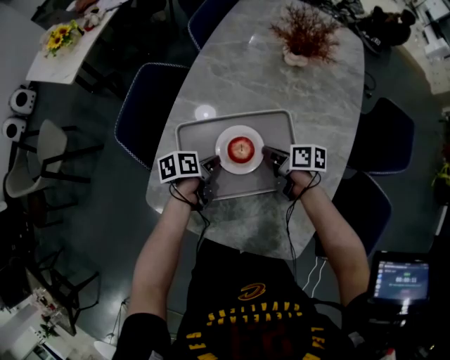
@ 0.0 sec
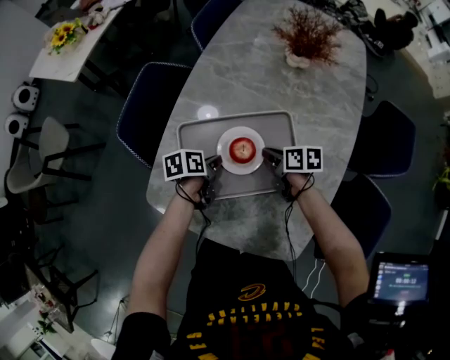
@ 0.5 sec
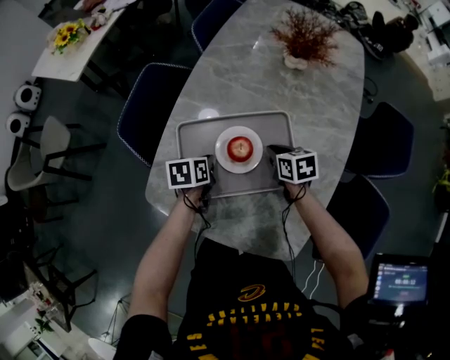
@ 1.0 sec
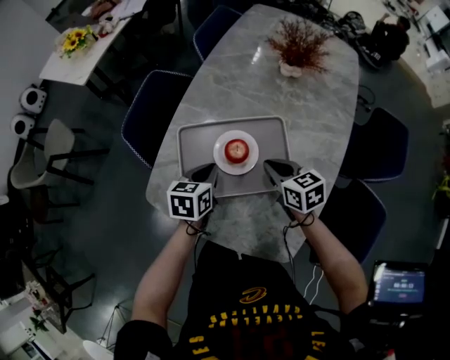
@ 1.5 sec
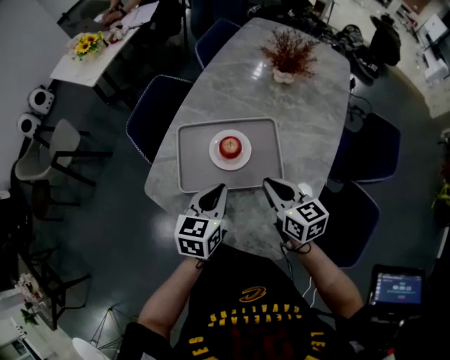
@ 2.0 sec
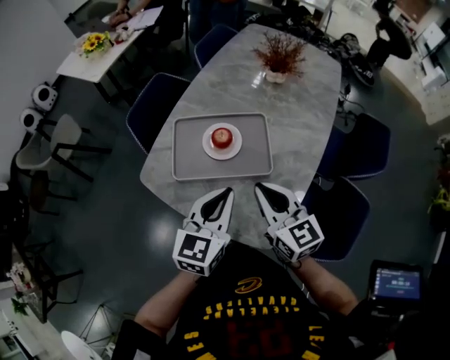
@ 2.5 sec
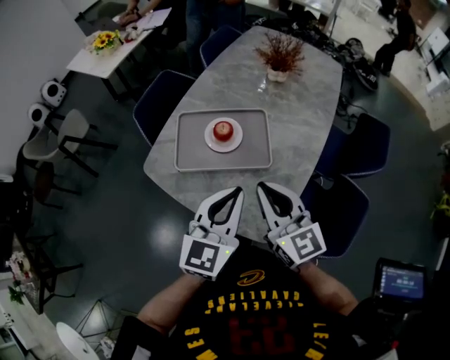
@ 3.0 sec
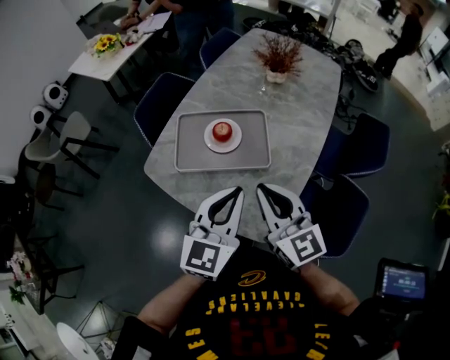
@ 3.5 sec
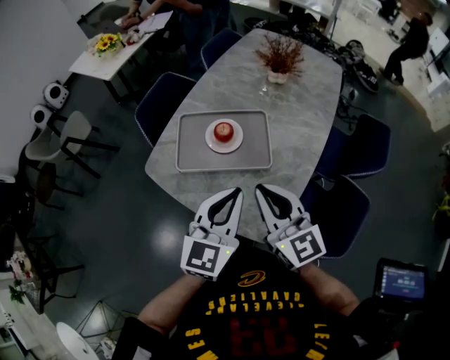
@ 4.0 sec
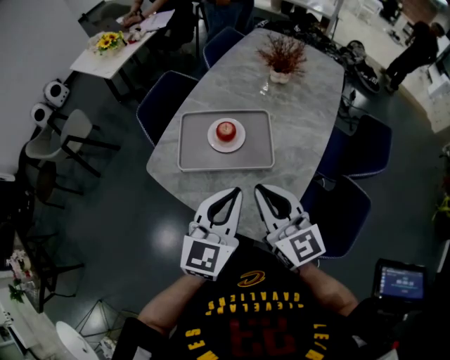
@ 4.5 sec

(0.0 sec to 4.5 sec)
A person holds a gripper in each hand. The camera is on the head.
0.0 sec - 2.0 sec: Both grippers move upward and backward, approximately 20 cm. The right gripper twists about 40 degrees counterclockwise, seen from behind. The left gripper twists about 40 degrees clockwise, seen from behind.
2.0 sec - 4.5 sec: The grippers both shift upward and backward by some 20 cm. The left gripper turns by roughly 20 degrees. The right gripper rotates approximately 30 degrees.

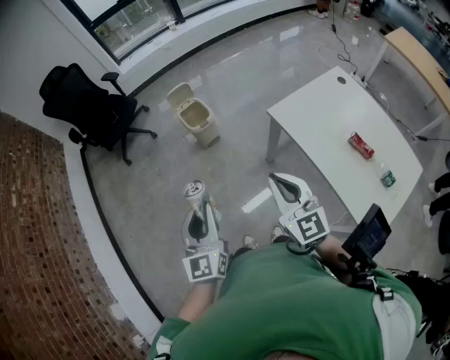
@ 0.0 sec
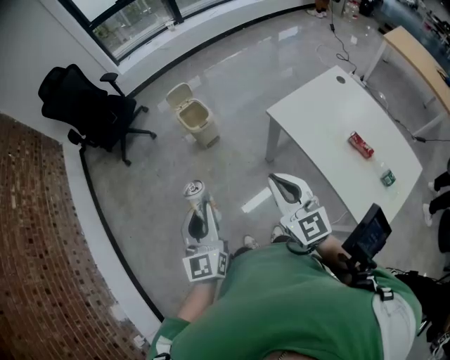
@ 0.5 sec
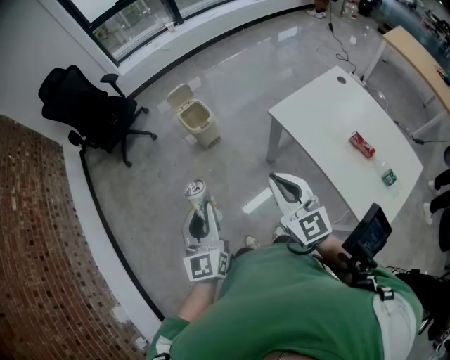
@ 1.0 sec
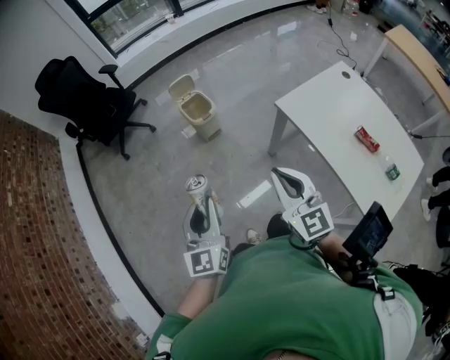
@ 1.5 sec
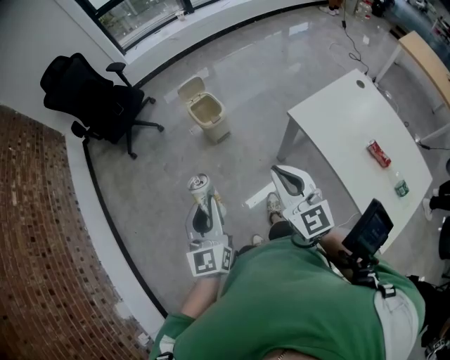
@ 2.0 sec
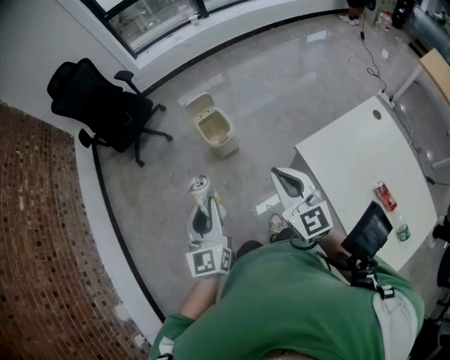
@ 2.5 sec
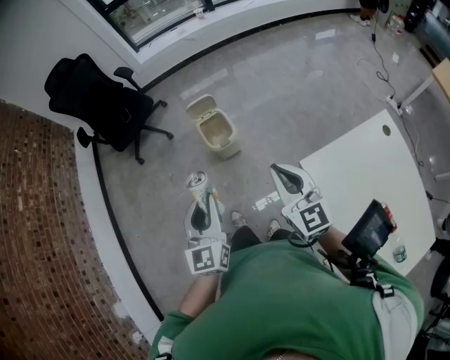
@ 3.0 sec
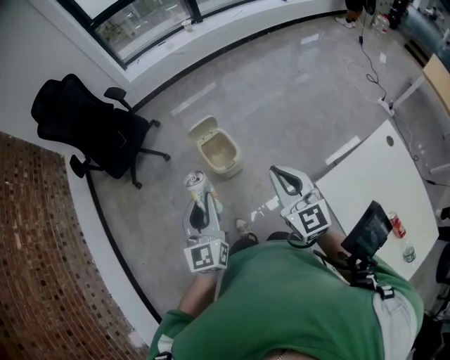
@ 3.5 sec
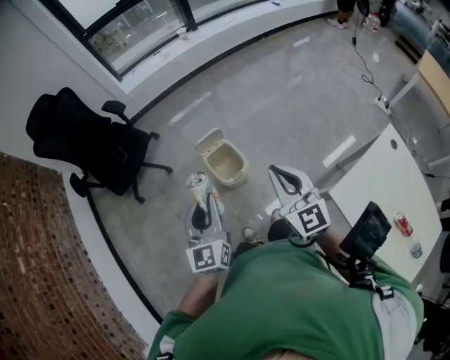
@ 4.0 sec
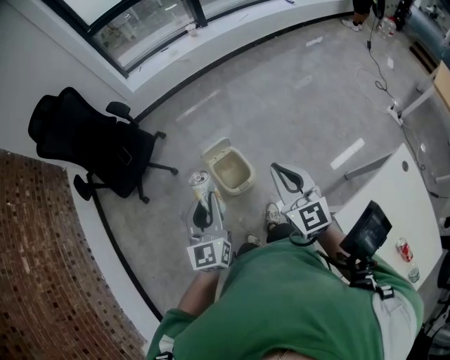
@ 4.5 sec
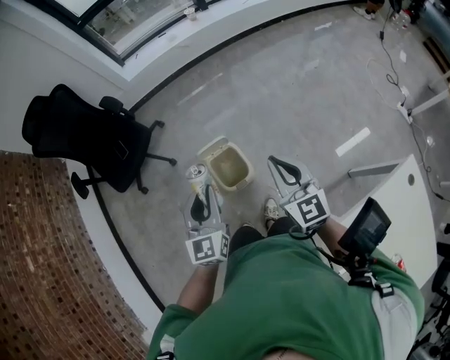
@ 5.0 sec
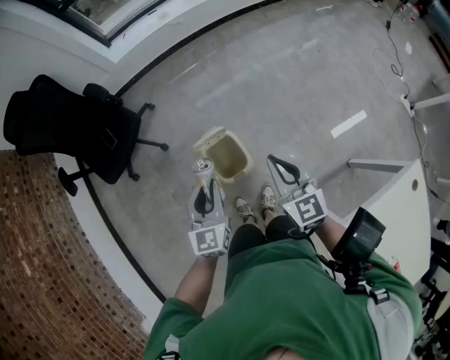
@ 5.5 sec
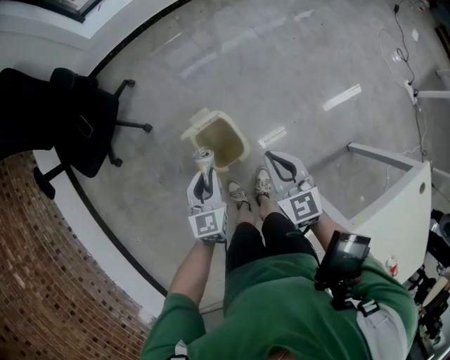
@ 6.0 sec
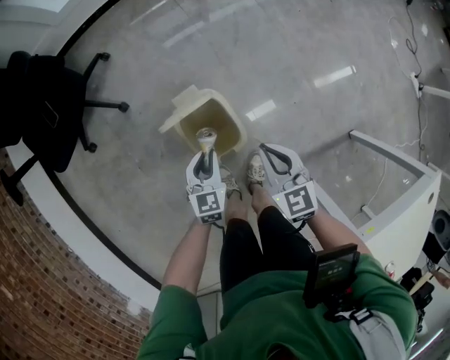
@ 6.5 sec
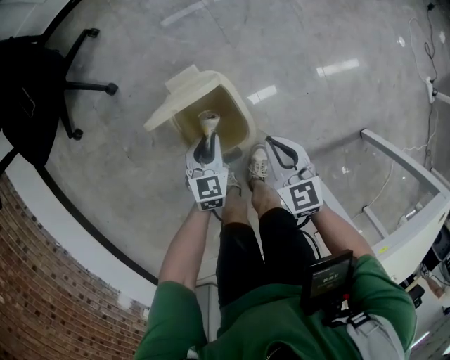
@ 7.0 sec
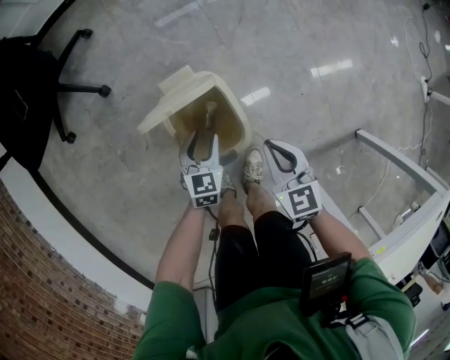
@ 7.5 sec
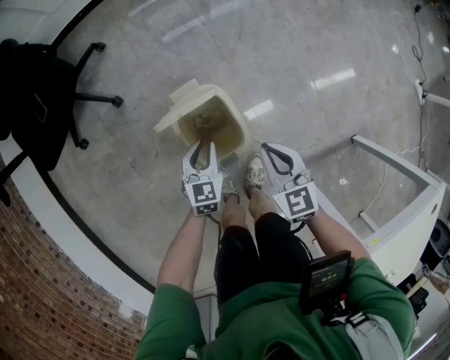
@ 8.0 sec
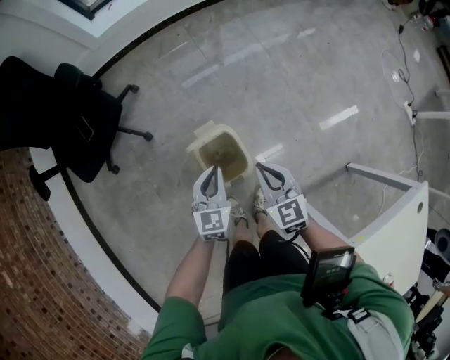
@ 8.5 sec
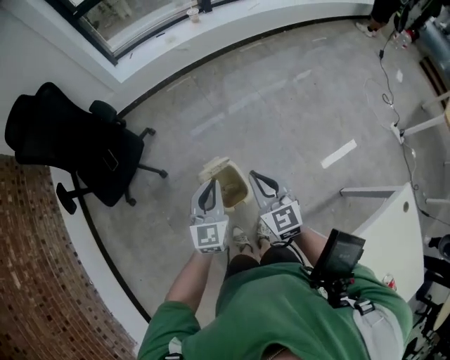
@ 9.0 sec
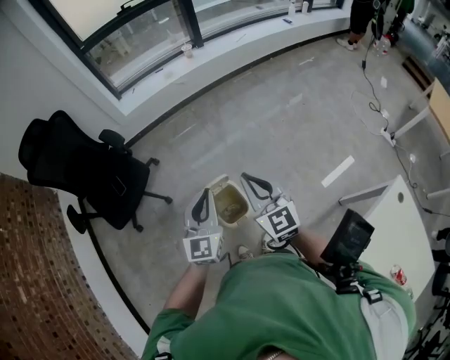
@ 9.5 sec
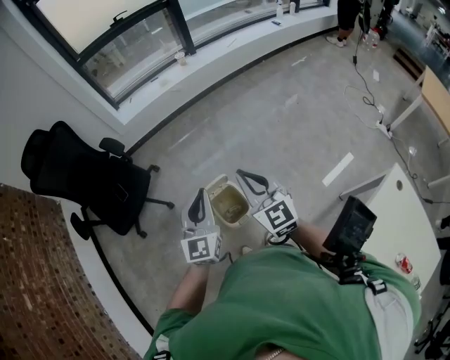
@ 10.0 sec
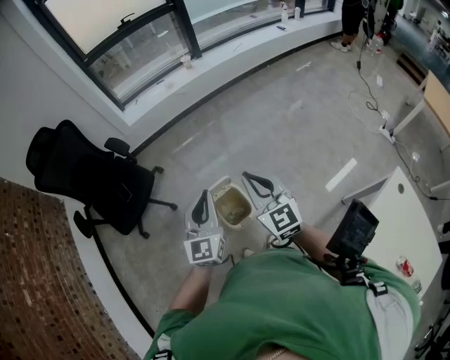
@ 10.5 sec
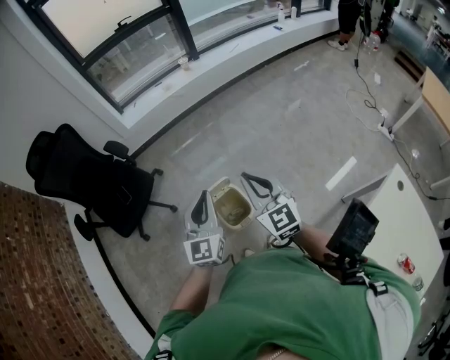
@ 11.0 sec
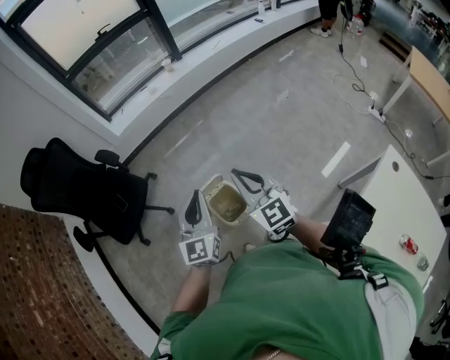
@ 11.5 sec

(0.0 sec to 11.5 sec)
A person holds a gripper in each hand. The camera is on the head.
0.0 sec - 2.0 sec: The two grippers go roughly 5 cm forward.
2.0 sec - 4.0 sec: The grippers both shift forward by about 35 cm.
4.0 sec - 6.0 sec: Both grippers travel together downward and forward, roughly 30 cm. The left gripper changes its angle by approximately 30 degrees, while the right gripper changes its angle by about 20 degrees.
6.0 sec - 7.5 sec: Both grippers move downward, some 25 cm. The left gripper opens up.
7.5 sec - 9.5 sec: Both grippers travel together upward, some 50 cm. The right gripper angles its fingers upward, by roughly 30 degrees; the left gripper tilts its fingers roughly 40 degrees upward, and closes its fingers.
9.5 sec - 11.5 sec: The grippers move only a little.

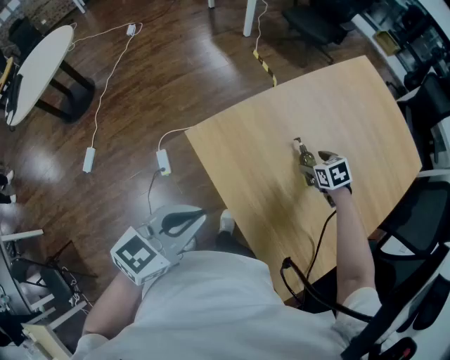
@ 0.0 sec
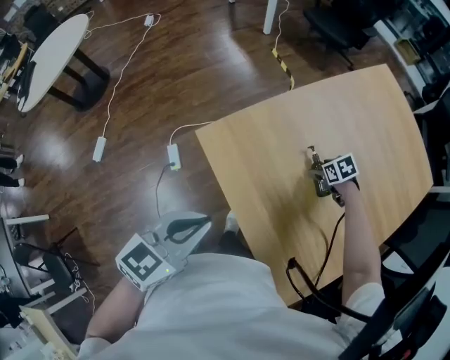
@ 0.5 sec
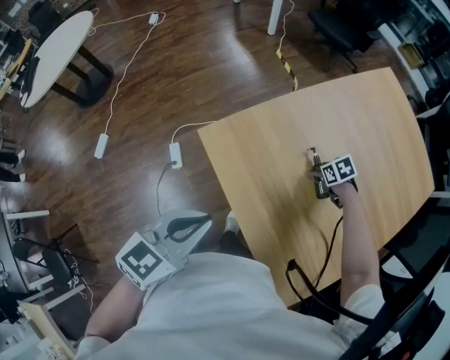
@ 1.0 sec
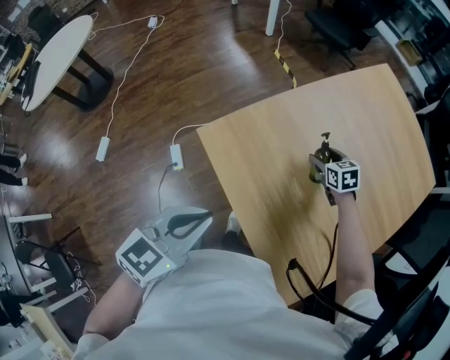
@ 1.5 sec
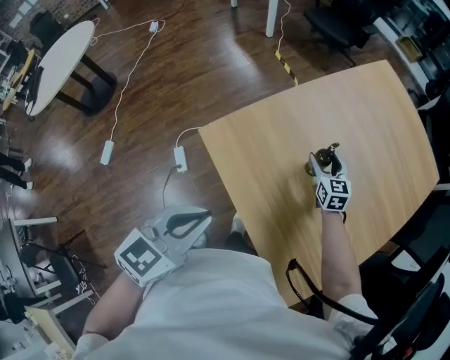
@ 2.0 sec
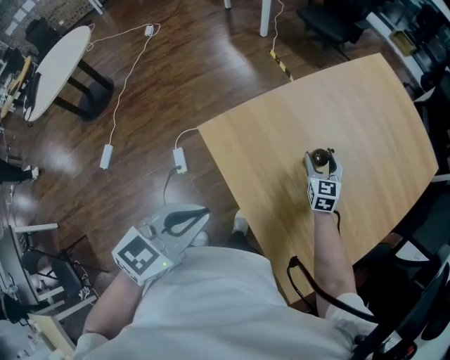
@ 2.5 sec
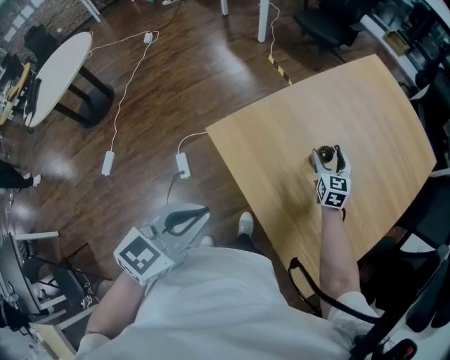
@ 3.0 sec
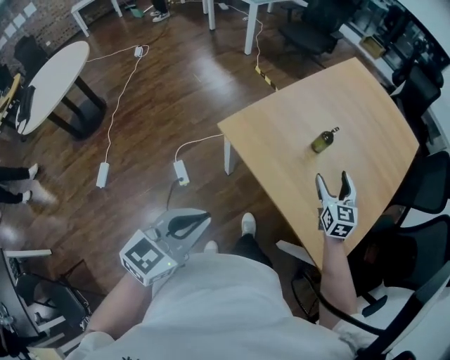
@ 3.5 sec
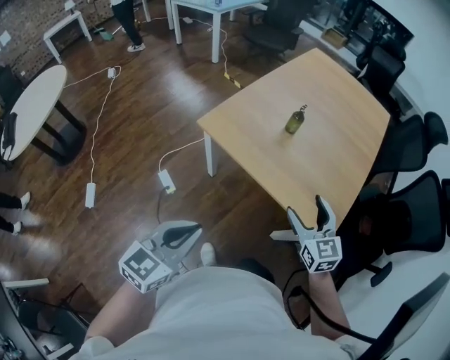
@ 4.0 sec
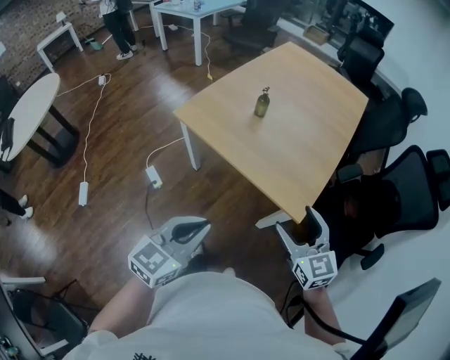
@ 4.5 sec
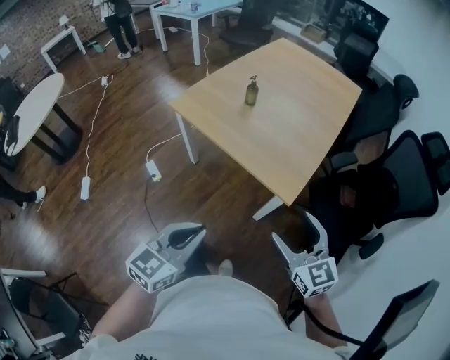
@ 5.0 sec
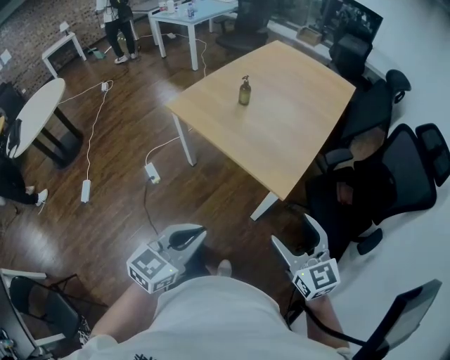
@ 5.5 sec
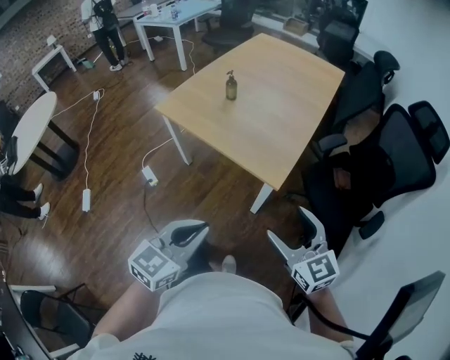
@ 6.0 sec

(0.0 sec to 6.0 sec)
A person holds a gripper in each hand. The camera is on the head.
0.0 sec - 2.0 sec: The right gripper goes downward and returns, approximately 5 cm each way, and points its fingers some 40 degrees further upward.
2.0 sec - 4.0 sec: The right gripper heads backward, covering about 35 cm. The left gripper moves backward, about 20 cm.
4.0 sec - 6.0 sec: The right gripper goes roughly 25 cm backward and to the right. Meanwhile the left gripper moves to the right and backward, roughly 25 cm.

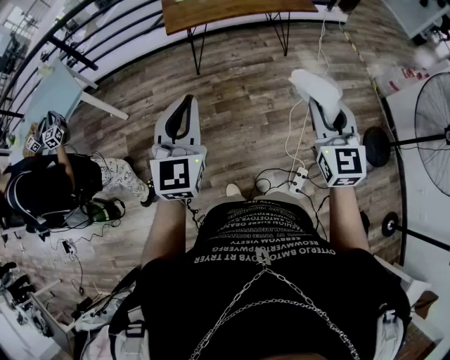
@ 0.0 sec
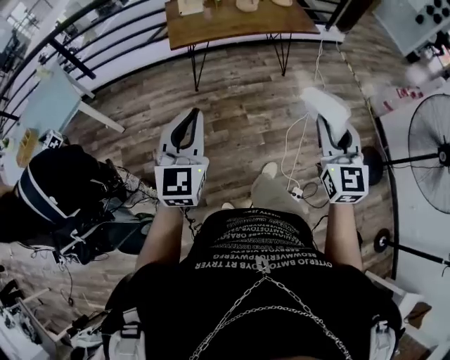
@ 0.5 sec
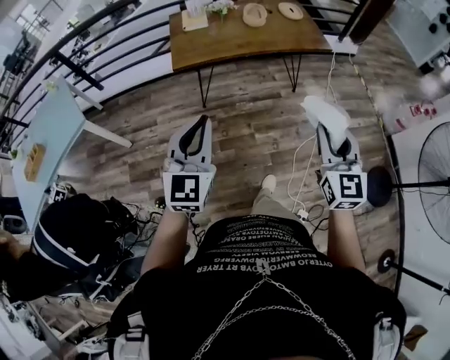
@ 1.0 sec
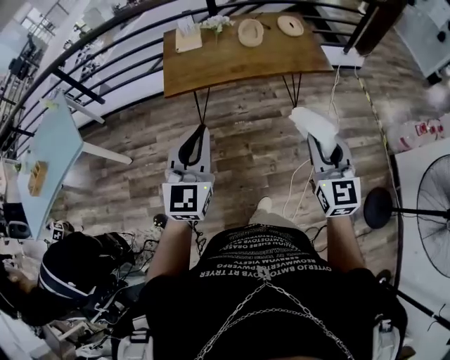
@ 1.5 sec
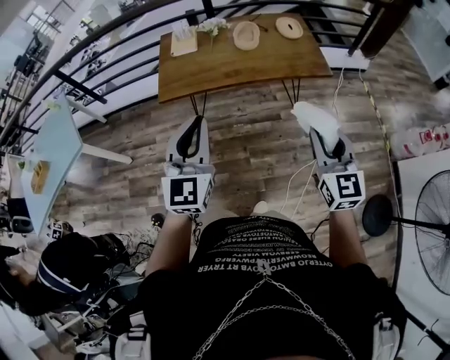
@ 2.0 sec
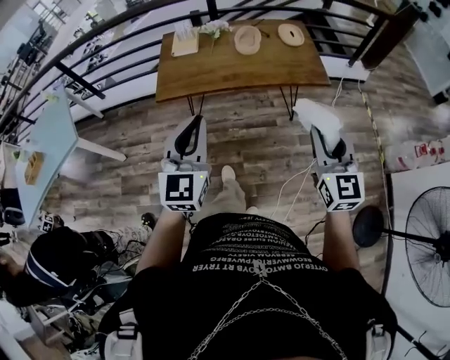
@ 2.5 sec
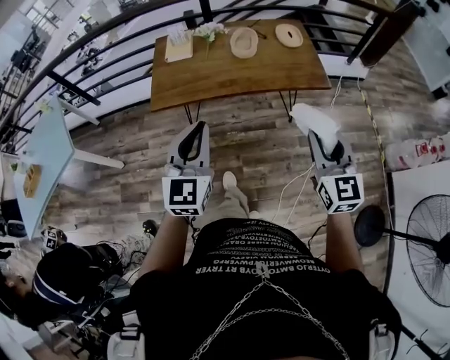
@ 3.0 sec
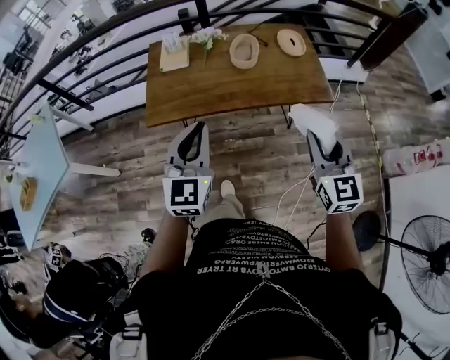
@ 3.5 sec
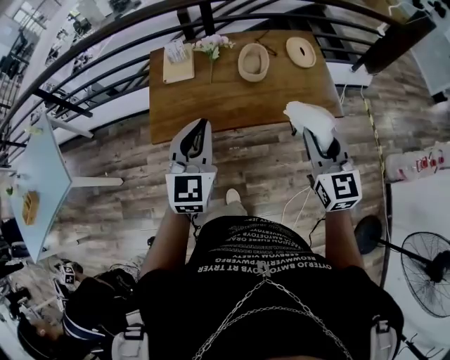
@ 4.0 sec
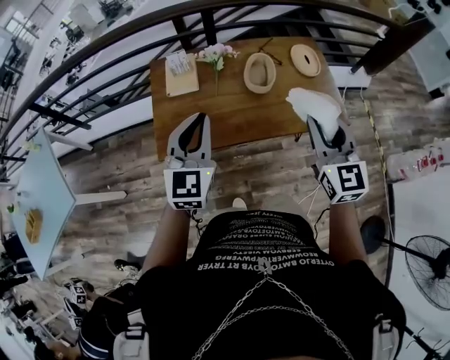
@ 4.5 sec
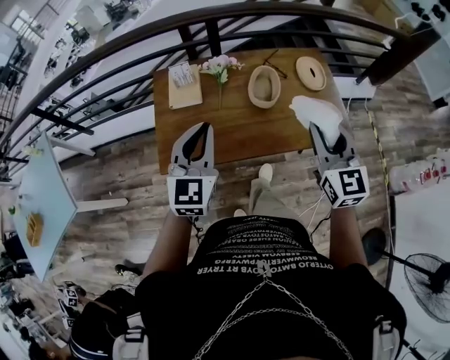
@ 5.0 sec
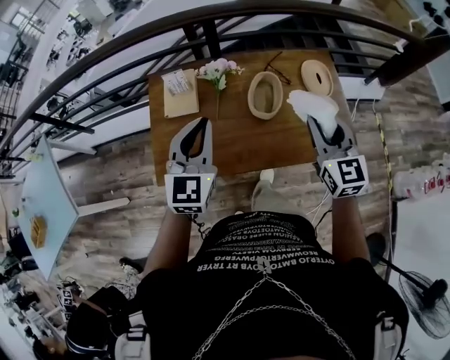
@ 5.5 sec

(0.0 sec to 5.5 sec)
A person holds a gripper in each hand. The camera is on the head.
0.0 sec - 2.0 sec: Both grippers move forward, about 35 cm.
2.0 sec - 3.5 sec: Both grippers travel together forward, about 15 cm.
3.5 sec - 5.5 sec: The two grippers go some 35 cm forward.
